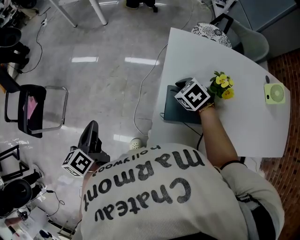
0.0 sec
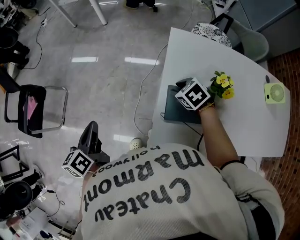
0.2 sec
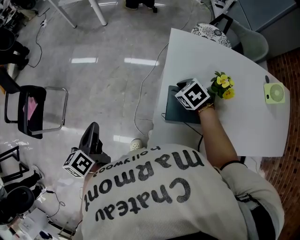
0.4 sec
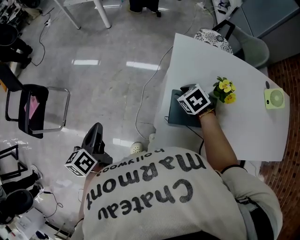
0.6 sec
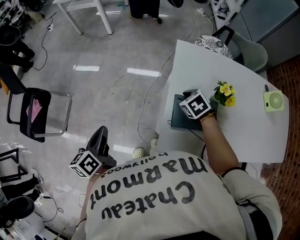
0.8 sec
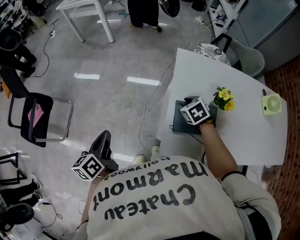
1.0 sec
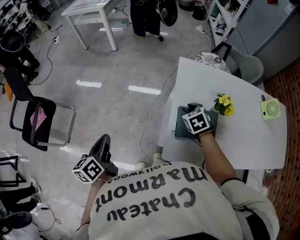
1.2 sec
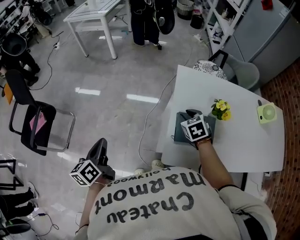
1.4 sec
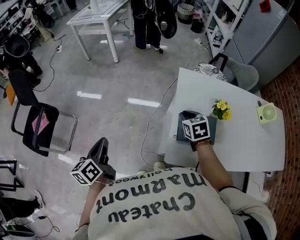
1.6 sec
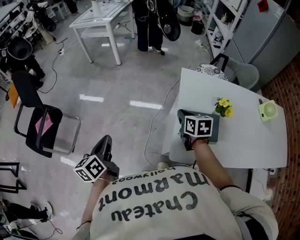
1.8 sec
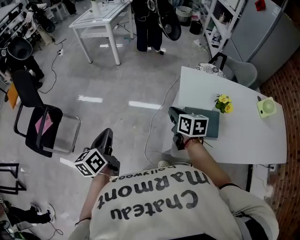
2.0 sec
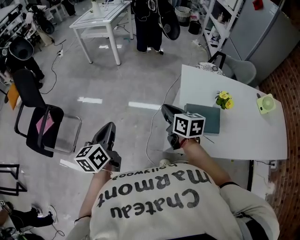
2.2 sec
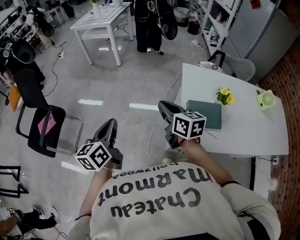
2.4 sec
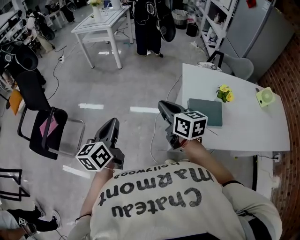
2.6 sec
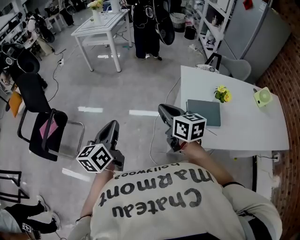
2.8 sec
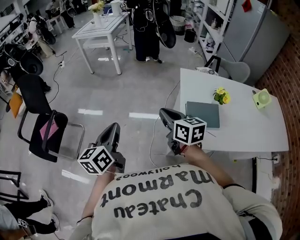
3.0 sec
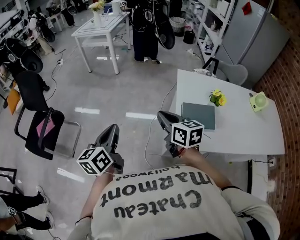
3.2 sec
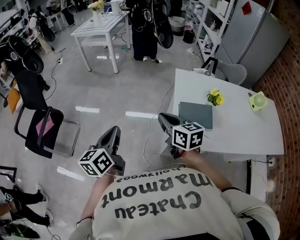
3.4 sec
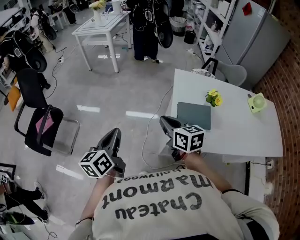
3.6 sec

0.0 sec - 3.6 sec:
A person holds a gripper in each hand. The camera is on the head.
0.0 sec - 1.8 sec: The right gripper heads upward and to the left, covering approximately 10 cm, swivels some 50 degrees, and closes its fingers. Meanwhile the left gripper heads to the left, covering approximately 10 cm.
1.8 sec - 3.6 sec: The right gripper shifts approximately 20 cm backward, to the left and upward. Meanwhile the left gripper is displaced backward and upward by about 10 cm.

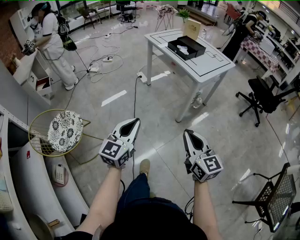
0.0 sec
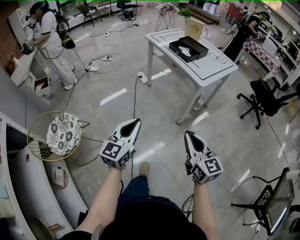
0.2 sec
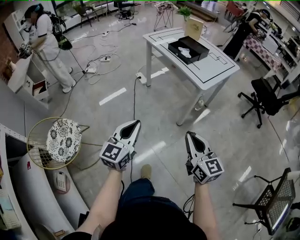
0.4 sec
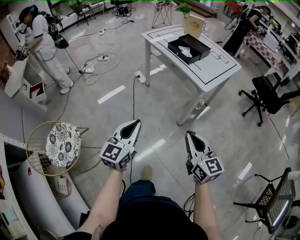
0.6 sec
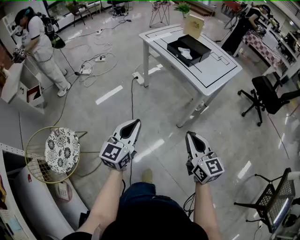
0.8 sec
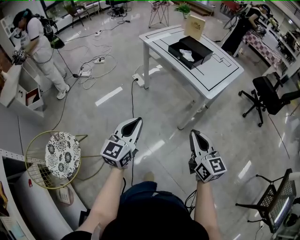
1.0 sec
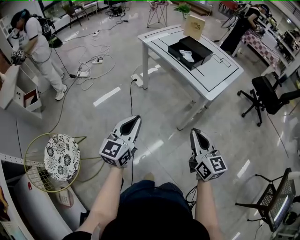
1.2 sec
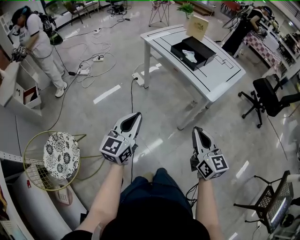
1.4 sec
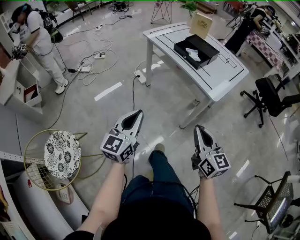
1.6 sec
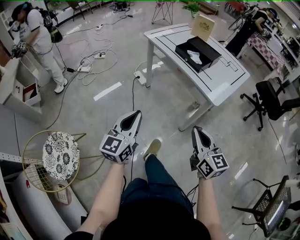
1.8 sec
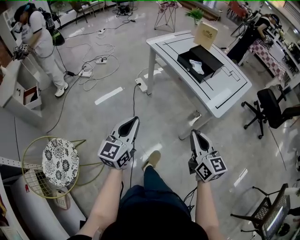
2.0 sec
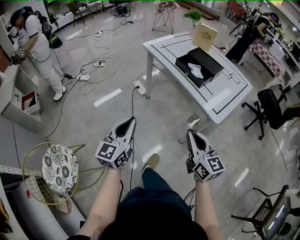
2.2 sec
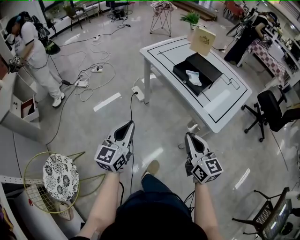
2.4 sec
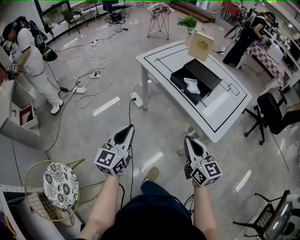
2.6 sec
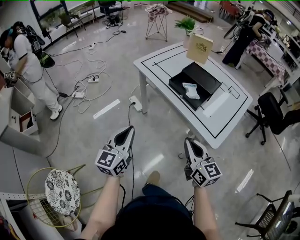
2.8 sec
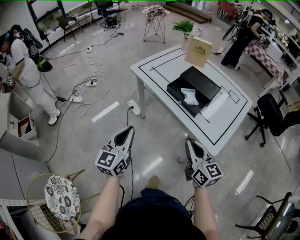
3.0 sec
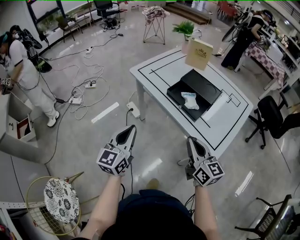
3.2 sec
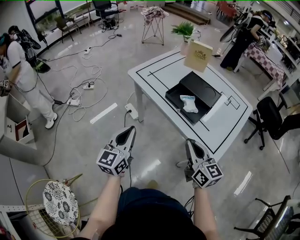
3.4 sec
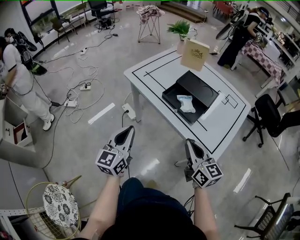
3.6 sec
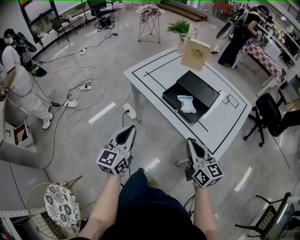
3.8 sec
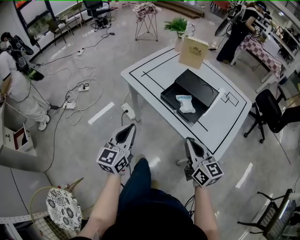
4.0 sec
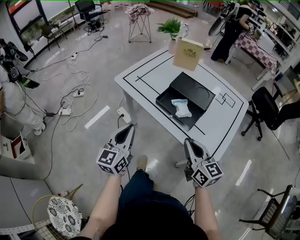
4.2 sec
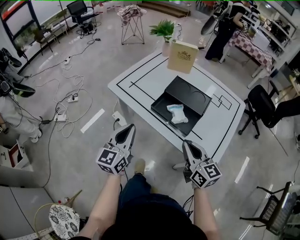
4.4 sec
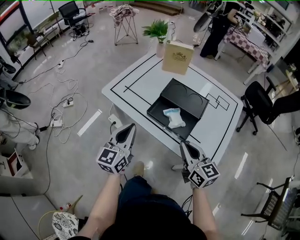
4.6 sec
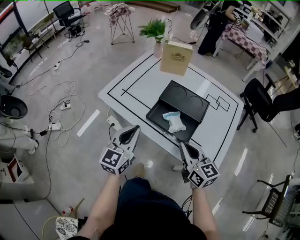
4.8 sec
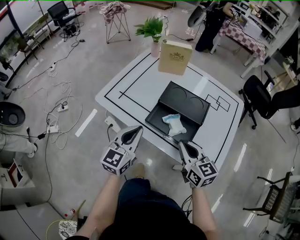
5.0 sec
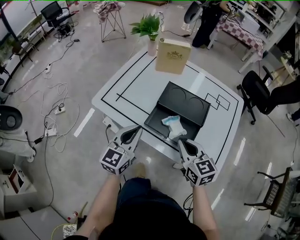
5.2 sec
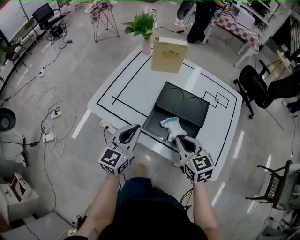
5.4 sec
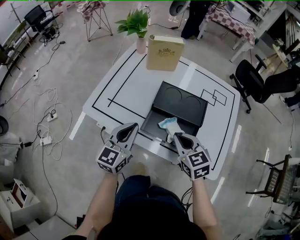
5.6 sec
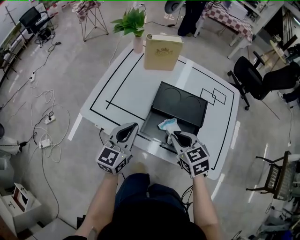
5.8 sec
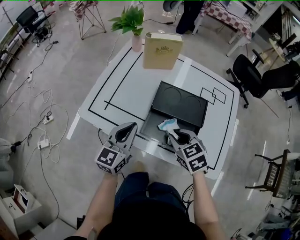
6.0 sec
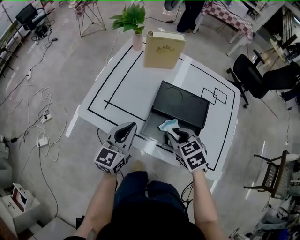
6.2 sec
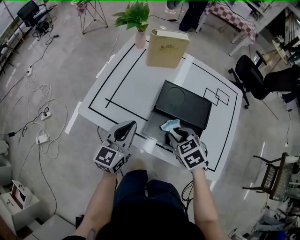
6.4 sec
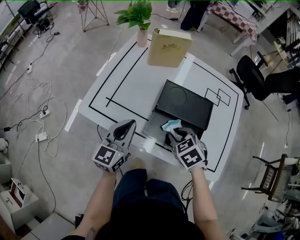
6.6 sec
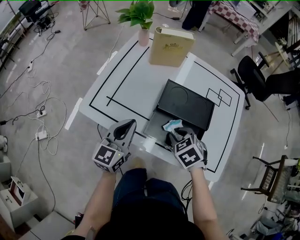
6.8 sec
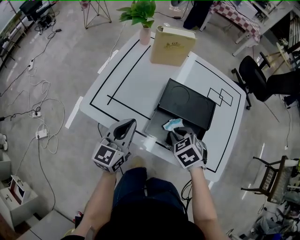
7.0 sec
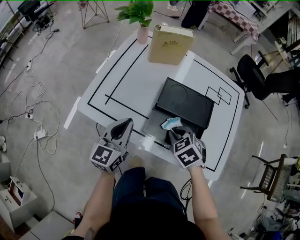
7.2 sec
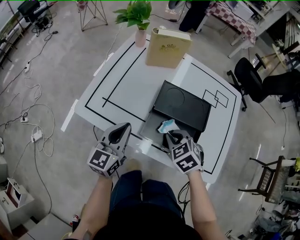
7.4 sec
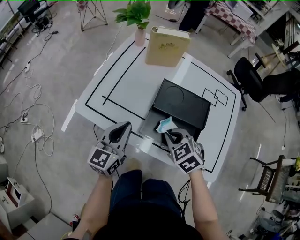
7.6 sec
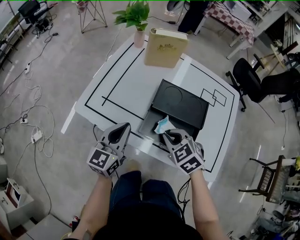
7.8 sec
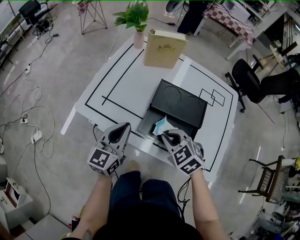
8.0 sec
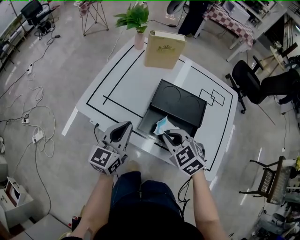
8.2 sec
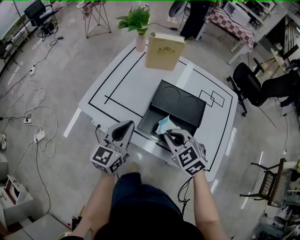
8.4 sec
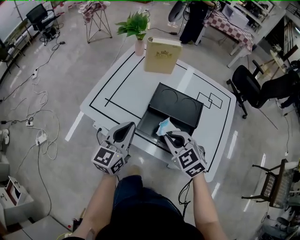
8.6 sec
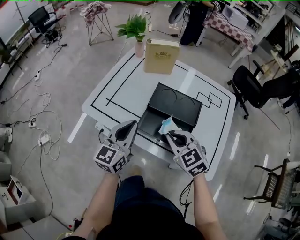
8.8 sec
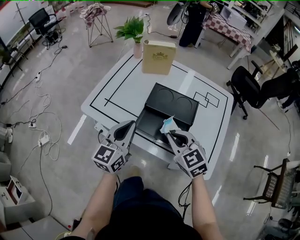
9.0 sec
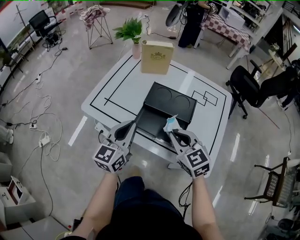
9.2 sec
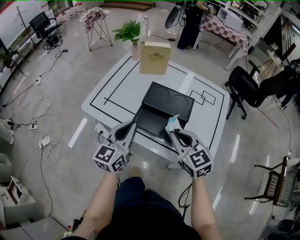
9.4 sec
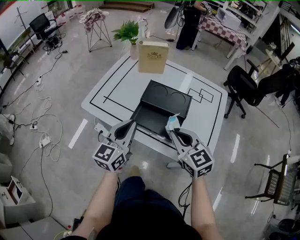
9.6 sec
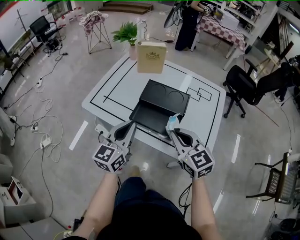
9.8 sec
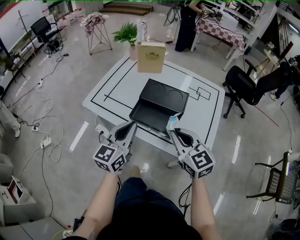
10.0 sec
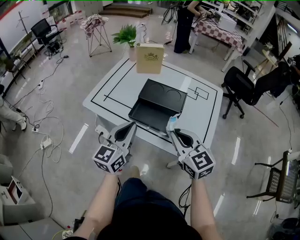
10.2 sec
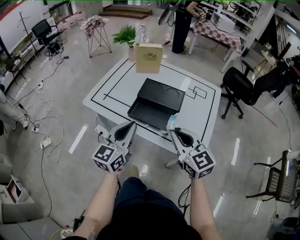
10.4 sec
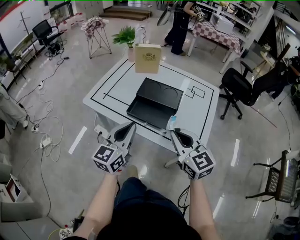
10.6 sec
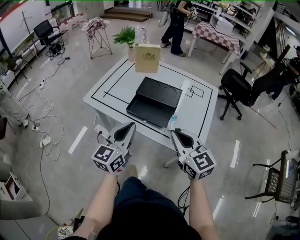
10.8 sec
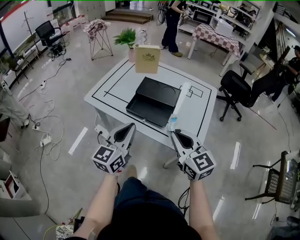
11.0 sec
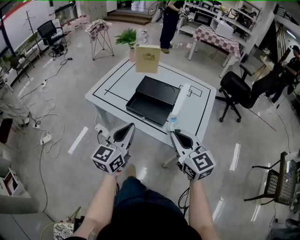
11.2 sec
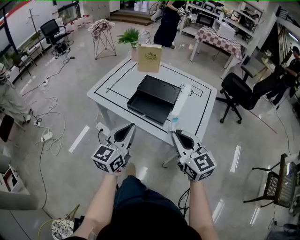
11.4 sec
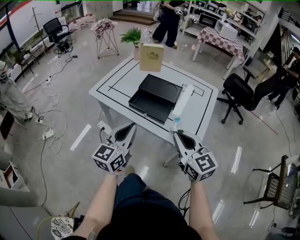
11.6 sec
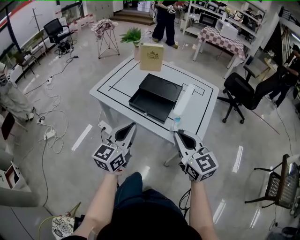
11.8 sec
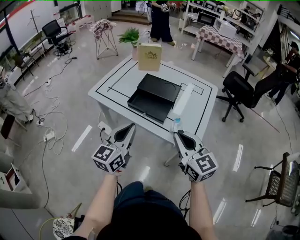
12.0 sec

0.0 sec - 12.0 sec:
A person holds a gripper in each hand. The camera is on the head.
0.0 sec - 1.6 sec: The grippers both shift forward by about 30 cm.
1.6 sec - 3.0 sec: The two grippers go approximately 30 cm forward.
3.0 sec - 4.4 sec: Both grippers travel together forward, about 15 cm.
4.4 sec - 6.0 sec: The left gripper heads forward, covering about 20 cm, and rotates about 20 degrees; the right gripper travels forward and downward by about 20 cm, angles its fingers downward, by approximately 40 degrees, and opens up.
6.0 sec - 7.6 sec: The grippers move only a little.
7.6 sec - 9.0 sec: The grippers both shift upward and backward by some 10 cm. The right gripper changes its angle by approximately 20 degrees.
9.0 sec - 10.4 sec: The right gripper goes about 15 cm backward, upward and to the right, while the left gripper is displaced backward by some 10 cm.
10.4 sec - 12.0 sec: Both grippers move backward, approximately 10 cm.

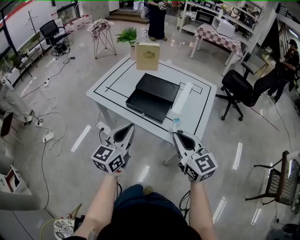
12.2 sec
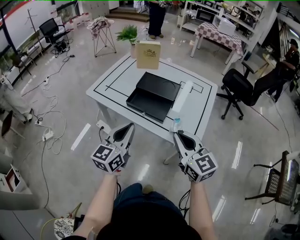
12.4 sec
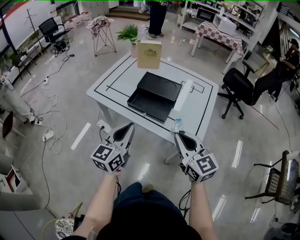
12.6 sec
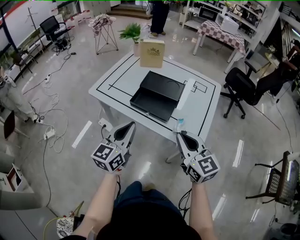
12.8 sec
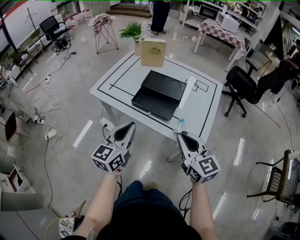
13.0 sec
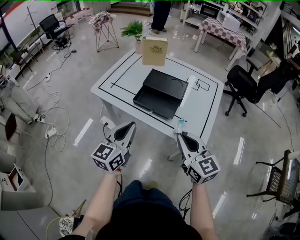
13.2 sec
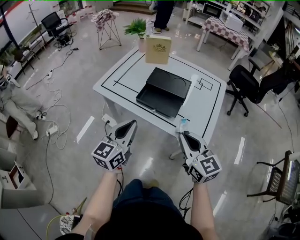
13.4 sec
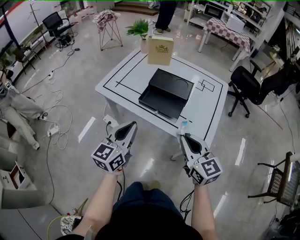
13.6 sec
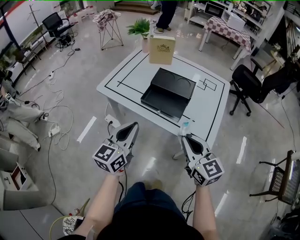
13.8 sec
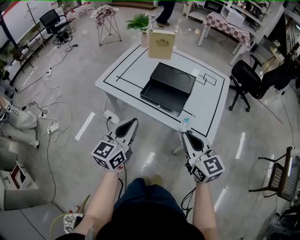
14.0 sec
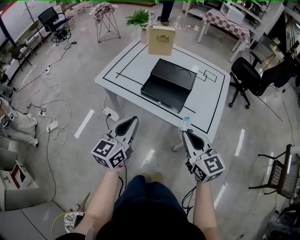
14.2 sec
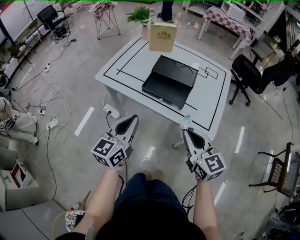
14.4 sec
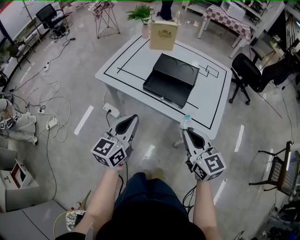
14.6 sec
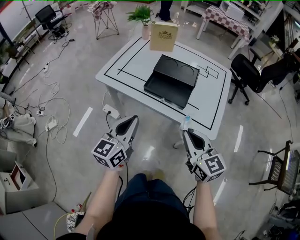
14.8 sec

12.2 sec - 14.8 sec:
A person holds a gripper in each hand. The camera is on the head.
12.2 sec - 13.4 sec: The left gripper shifts by roughly 5 cm.
13.4 sec - 14.8 sec: The right gripper ends up roughly 5 cm from where it was, while the left gripper moves roughly 5 cm.

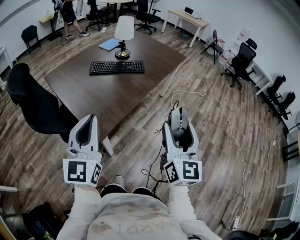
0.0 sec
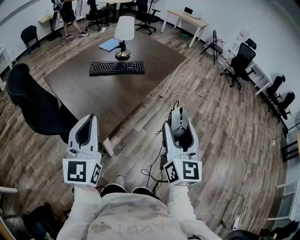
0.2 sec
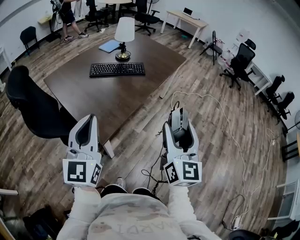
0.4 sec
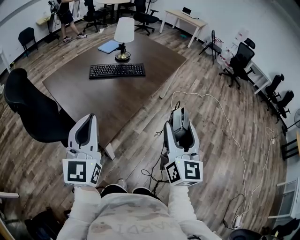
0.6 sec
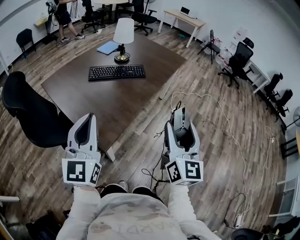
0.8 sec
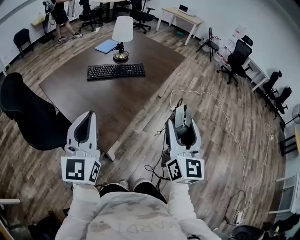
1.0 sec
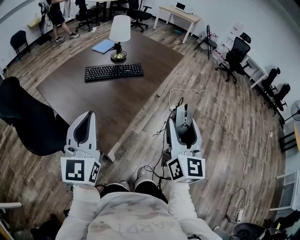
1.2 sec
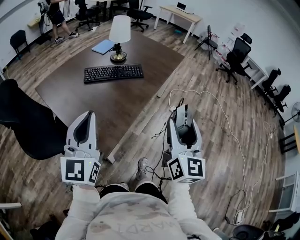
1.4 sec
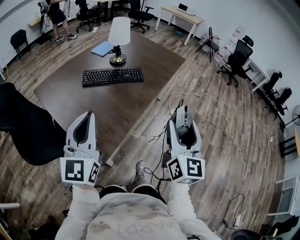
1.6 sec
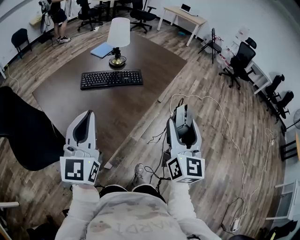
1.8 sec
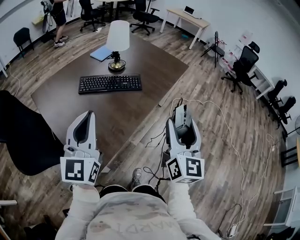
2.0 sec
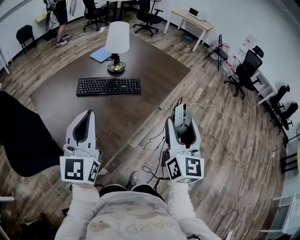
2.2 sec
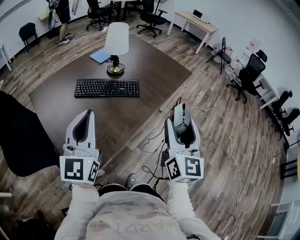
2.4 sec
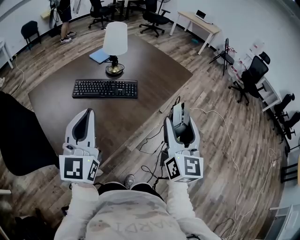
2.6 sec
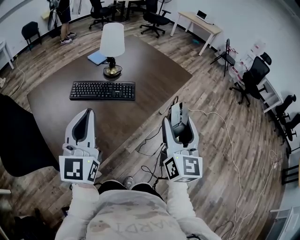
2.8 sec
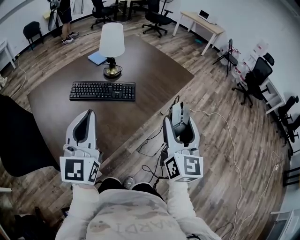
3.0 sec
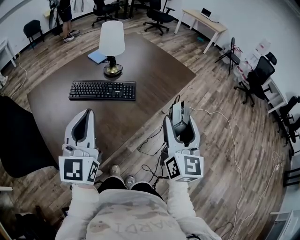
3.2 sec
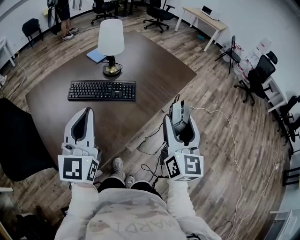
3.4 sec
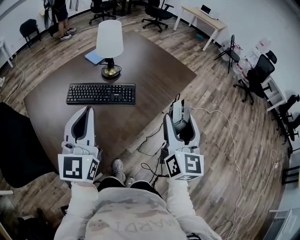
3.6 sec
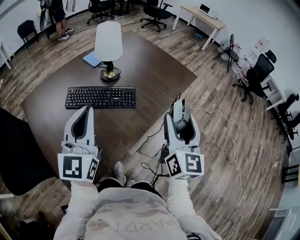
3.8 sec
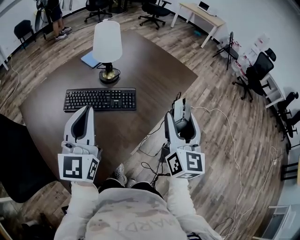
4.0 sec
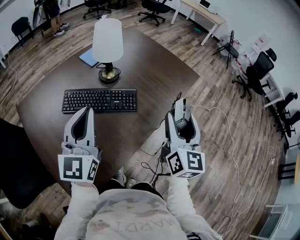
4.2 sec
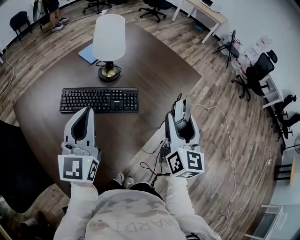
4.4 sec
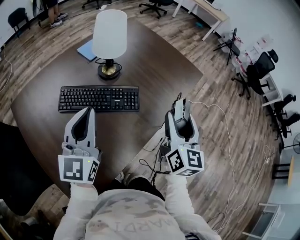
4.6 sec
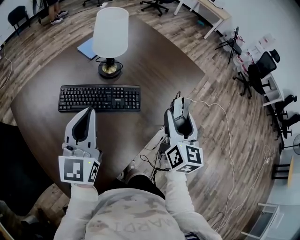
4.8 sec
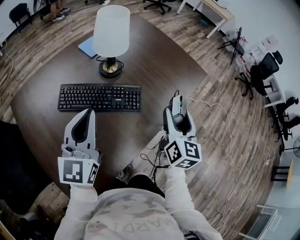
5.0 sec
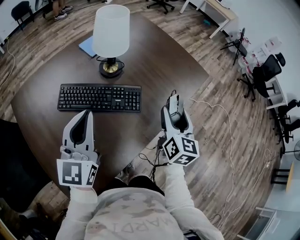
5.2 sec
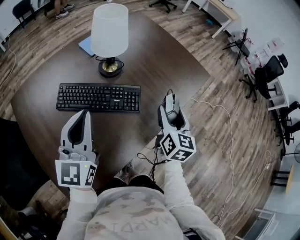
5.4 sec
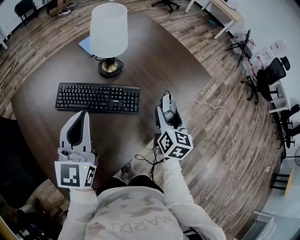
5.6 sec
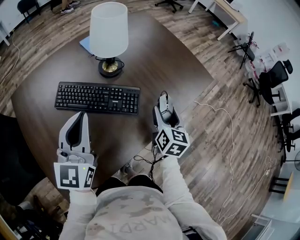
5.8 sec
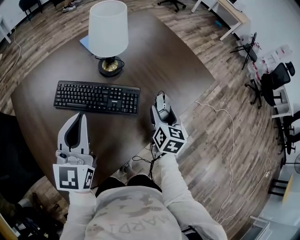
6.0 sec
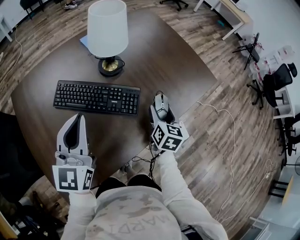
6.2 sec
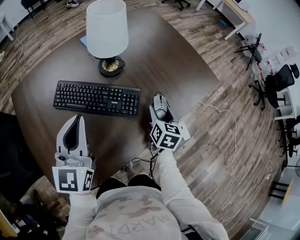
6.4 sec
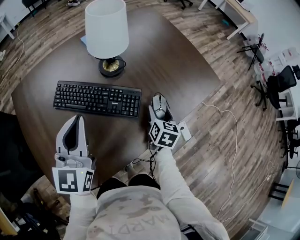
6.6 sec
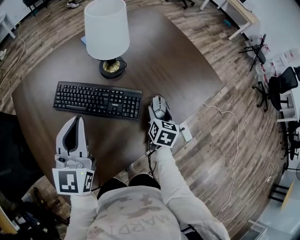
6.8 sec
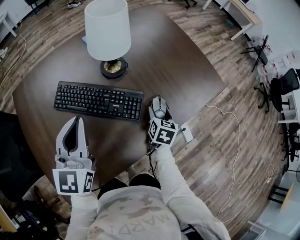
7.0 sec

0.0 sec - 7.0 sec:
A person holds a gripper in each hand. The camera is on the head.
0.0 sec - 1.4 sec: The right gripper shifts roughly 10 cm forward. The left gripper travels forward and to the left by approximately 15 cm.
1.4 sec - 2.8 sec: Both grippers move forward and to the right, about 25 cm.
2.8 sec - 4.2 sec: Both grippers travel together forward, about 20 cm.
4.2 sec - 5.6 sec: The right gripper goes roughly 20 cm downward and forward, and turns by approximately 20 degrees. The left gripper shifts approximately 10 cm forward and downward.
5.6 sec - 7.0 sec: The left gripper ends up approximately 5 cm from where it was, while the right gripper goes roughly 15 cm downward and forward, and rotates approximately 20 degrees.
